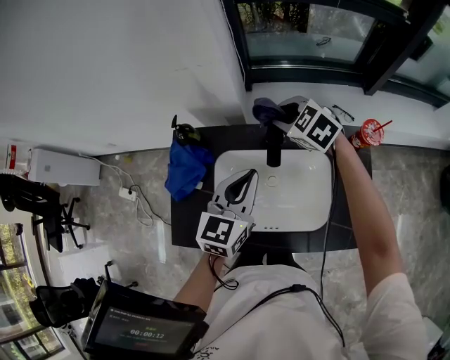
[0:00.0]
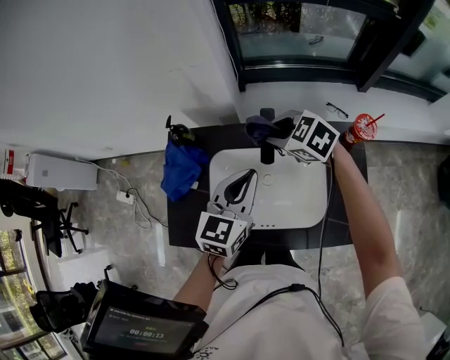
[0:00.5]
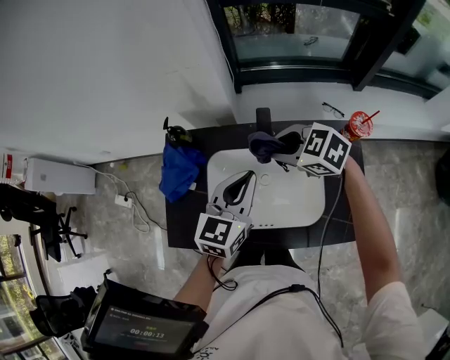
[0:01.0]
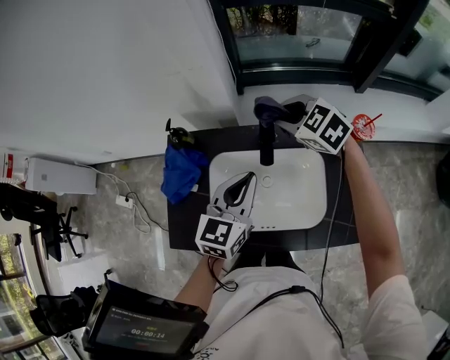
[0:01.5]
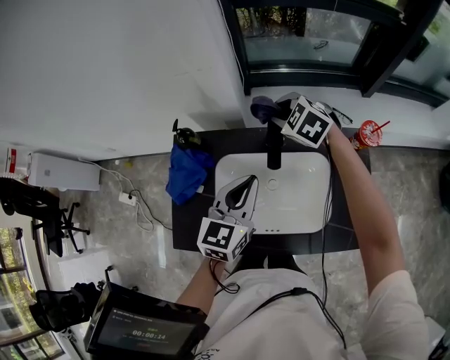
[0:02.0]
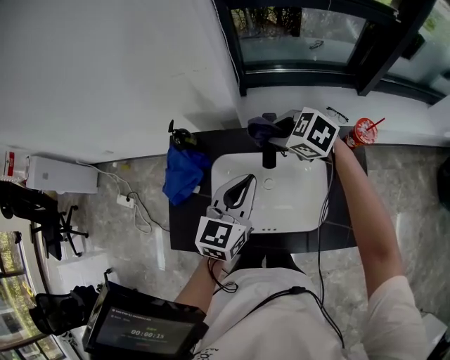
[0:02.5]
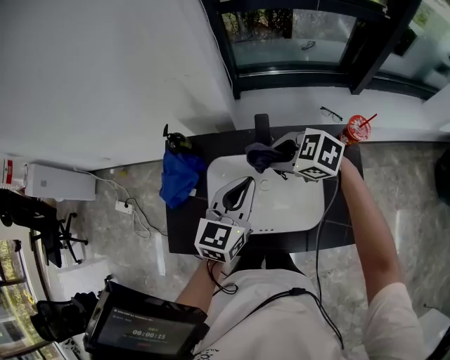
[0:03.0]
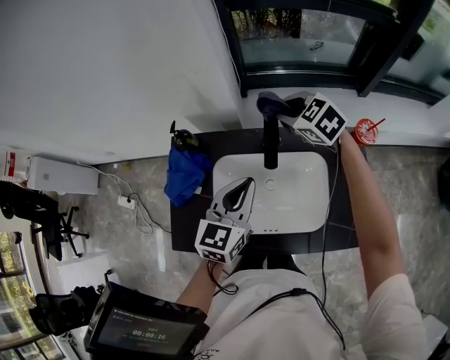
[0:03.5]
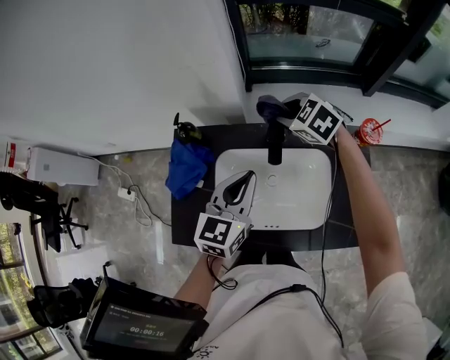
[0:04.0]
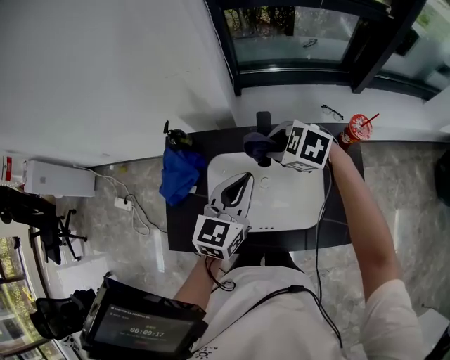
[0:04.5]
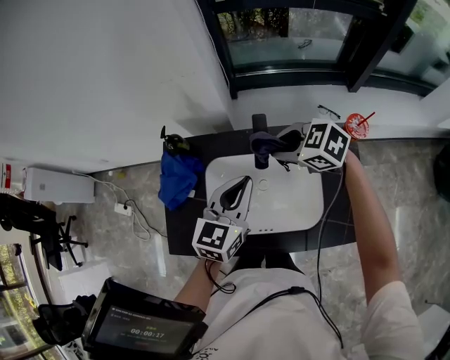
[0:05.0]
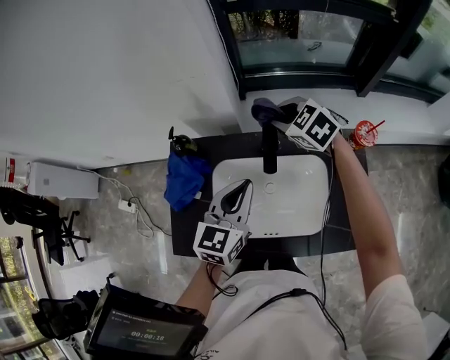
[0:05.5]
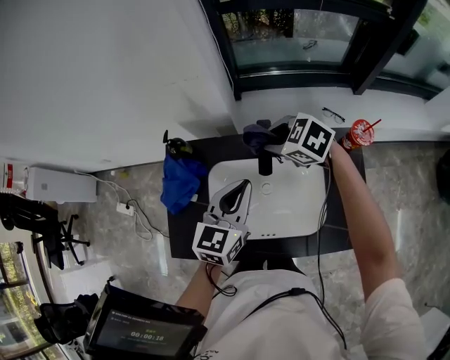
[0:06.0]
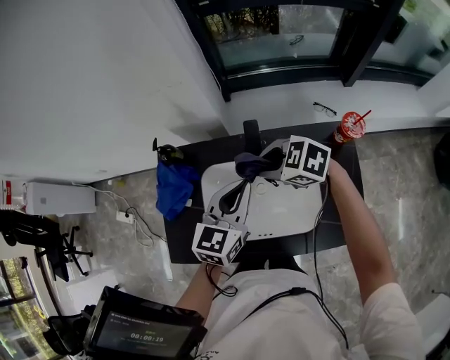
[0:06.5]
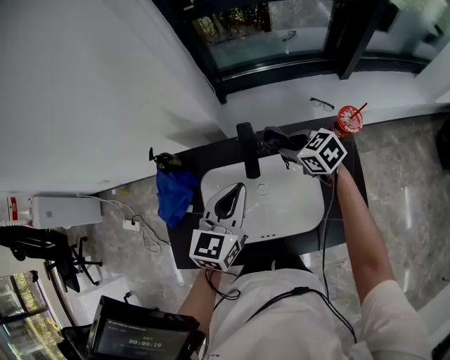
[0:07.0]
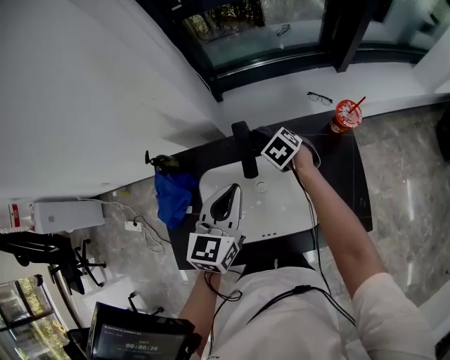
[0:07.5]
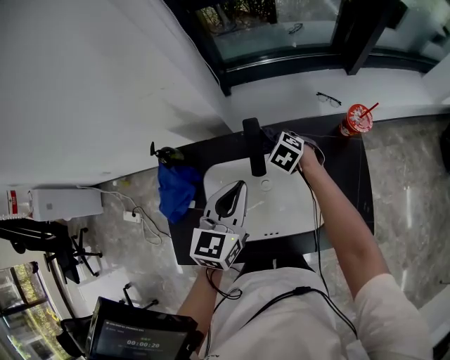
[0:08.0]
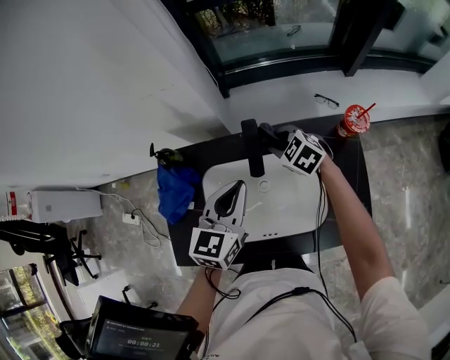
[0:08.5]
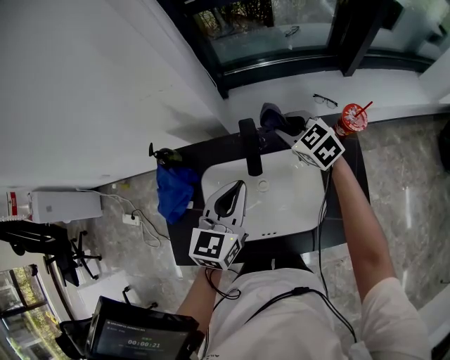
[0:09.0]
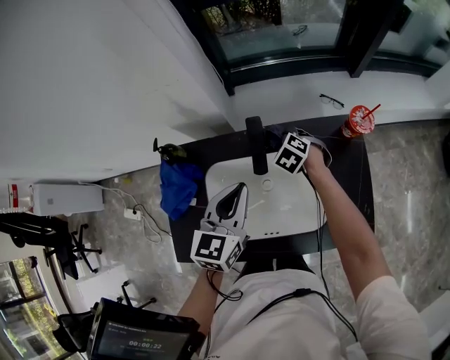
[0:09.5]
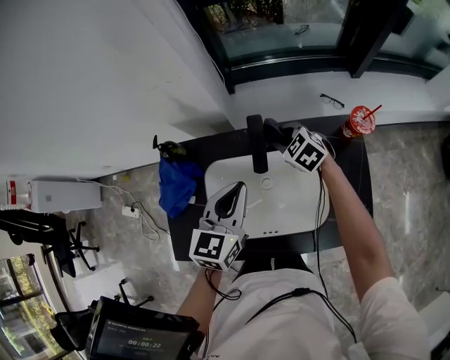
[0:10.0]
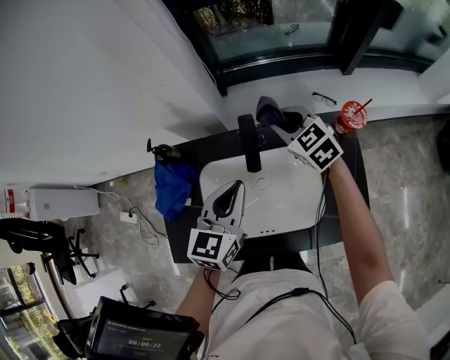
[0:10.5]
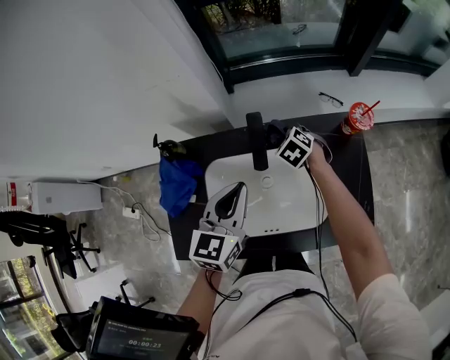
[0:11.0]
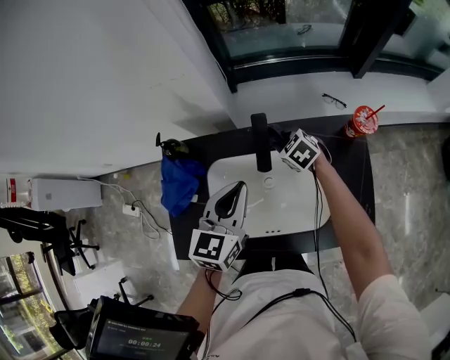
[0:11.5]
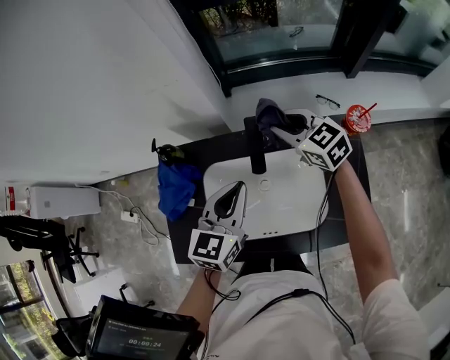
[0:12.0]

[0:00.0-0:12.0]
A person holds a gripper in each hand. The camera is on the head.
0.0 to 2.0 s: The right gripper goes backward and returns, some 10 cm each way.
2.0 to 4.0 s: The right gripper goes backward and returns, roughly 15 cm each way.
4.0 to 6.0 s: The right gripper swings forward and backward, roughly 10 cm each way, with 2 reversals.
6.0 to 8.0 s: The right gripper goes about 15 cm downward, and rotates roughly 20 degrees.
8.0 to 10.0 s: The right gripper swings up and down, roughly 15 cm each way, with 2 reversals.
10.0 to 12.0 s: The right gripper moves up and down over roughly 15 cm, changing direction 2 times, and changes its angle by approximately 20 degrees.

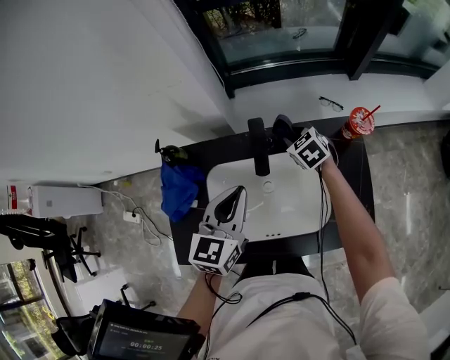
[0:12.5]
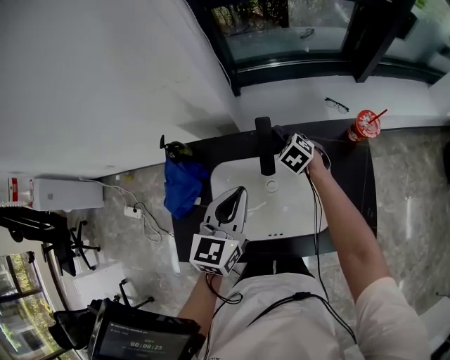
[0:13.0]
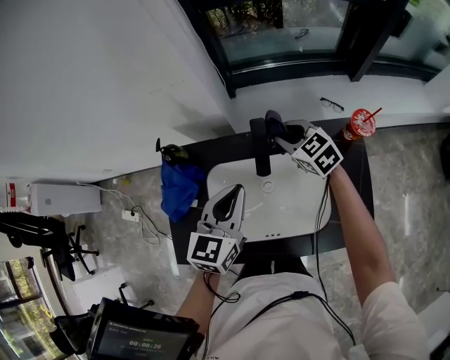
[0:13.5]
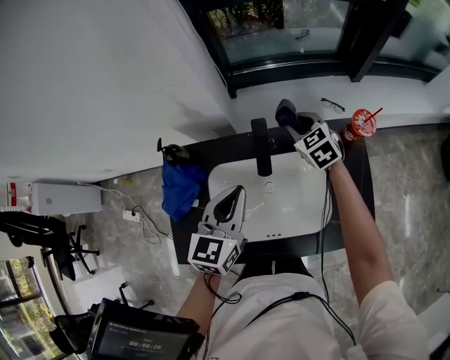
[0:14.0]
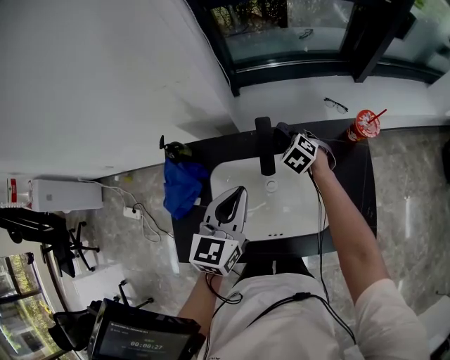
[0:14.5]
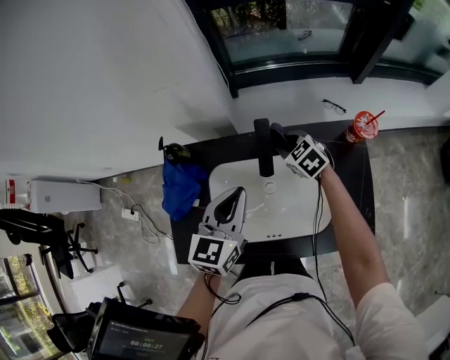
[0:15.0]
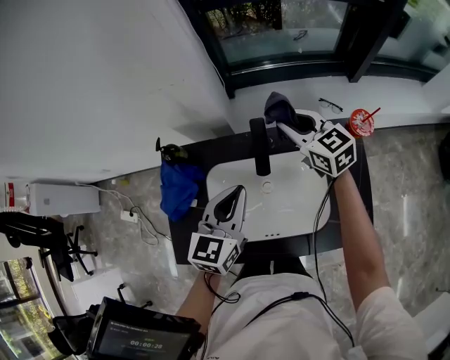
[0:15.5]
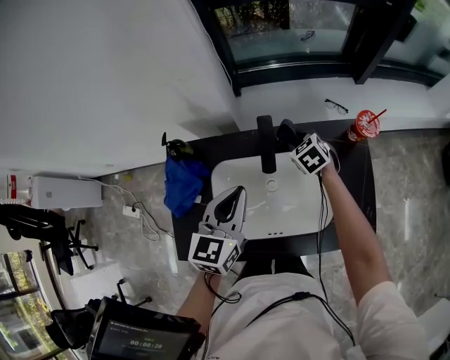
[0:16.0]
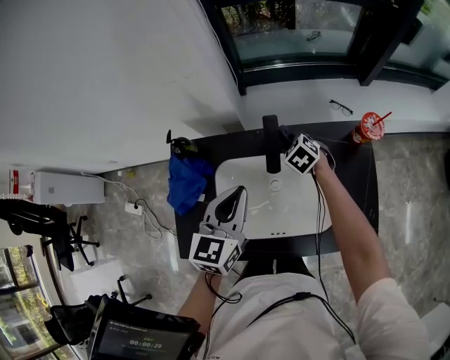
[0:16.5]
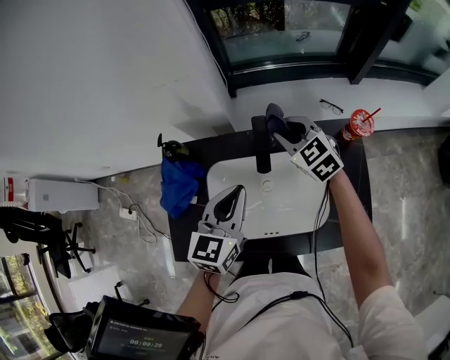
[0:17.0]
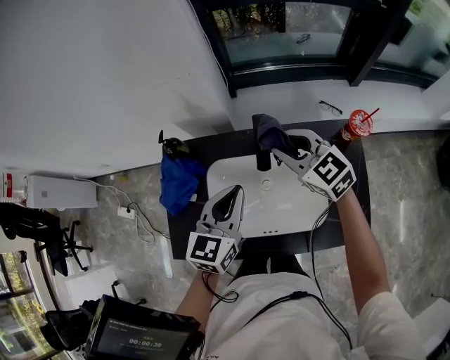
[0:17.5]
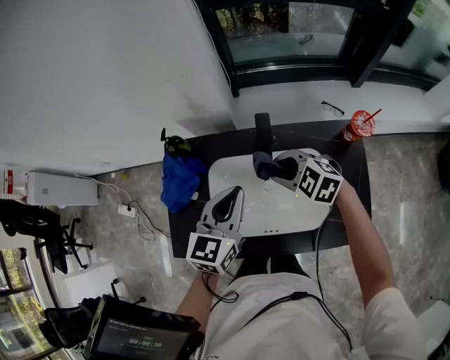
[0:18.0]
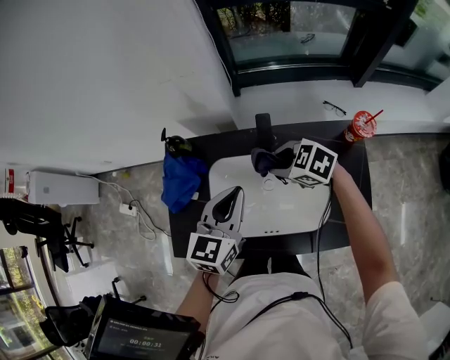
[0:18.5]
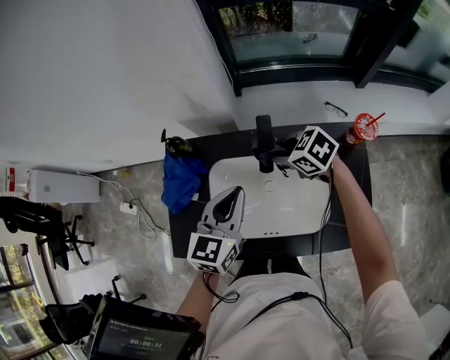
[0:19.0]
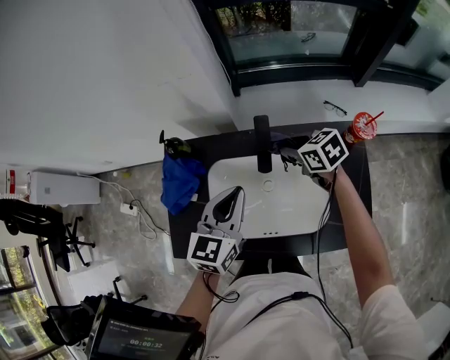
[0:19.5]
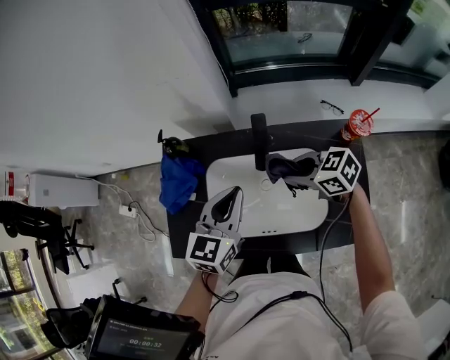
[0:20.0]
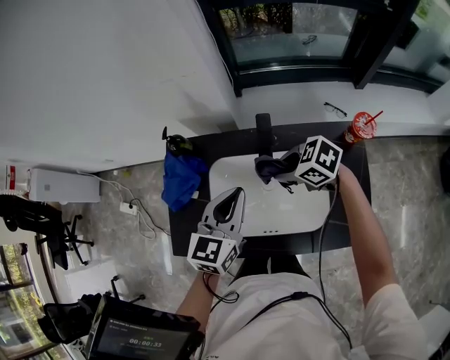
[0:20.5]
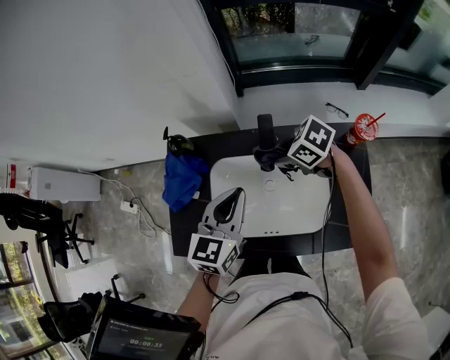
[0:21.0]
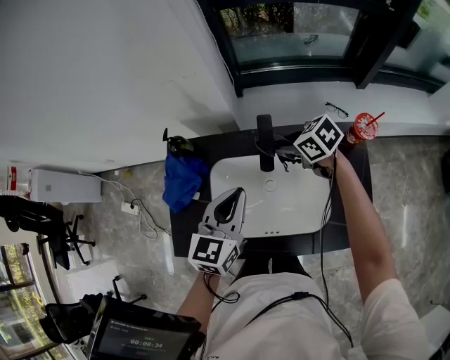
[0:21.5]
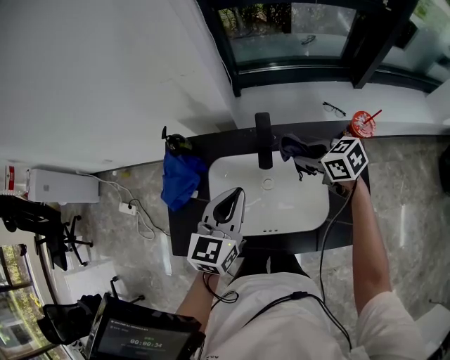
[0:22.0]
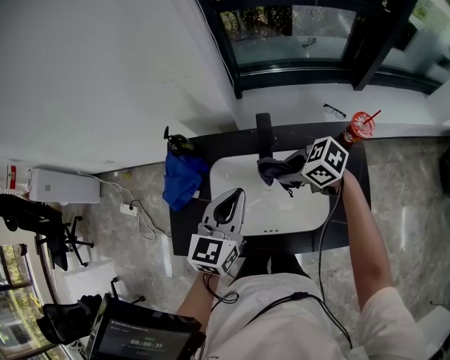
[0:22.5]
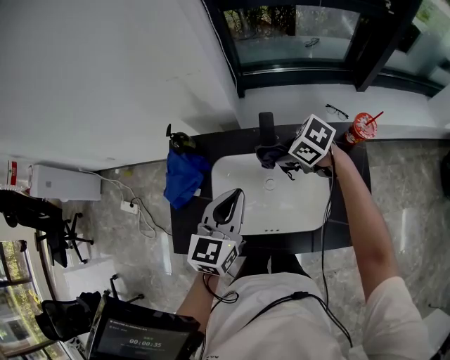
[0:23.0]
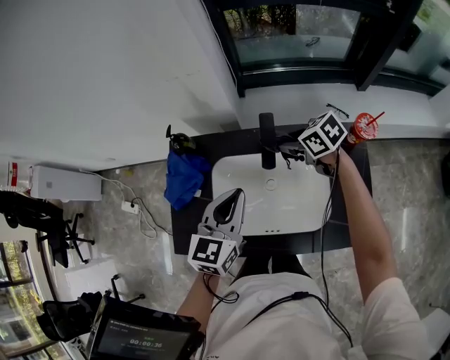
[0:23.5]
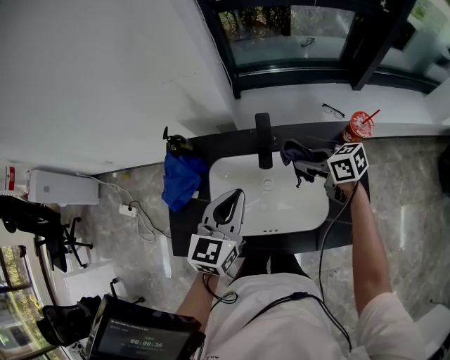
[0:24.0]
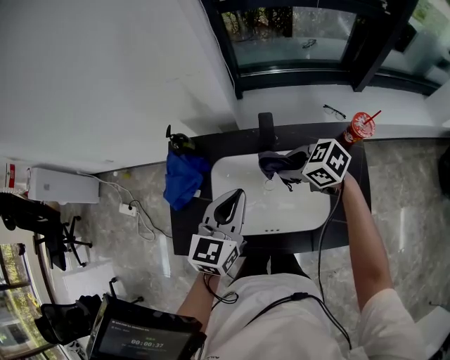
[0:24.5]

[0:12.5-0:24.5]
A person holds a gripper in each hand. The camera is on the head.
12.5 to 14.5 s: The right gripper swings up and down, approximately 10 cm each way, with 2 reversals.
14.5 to 16.5 s: The right gripper reaches roughly 20 cm upward, then returns.
16.5 to 18.5 s: The right gripper shifts some 15 cm upward, backward and to the left, and swivels approximately 30 degrees.
18.5 to 20.5 s: The right gripper travels backward and back again, about 5 cm each way.
20.5 to 22.5 s: The right gripper reaches about 10 cm to the right, then returns.
22.5 to 24.5 s: The right gripper travels forward and back again, approximately 10 cm each way.

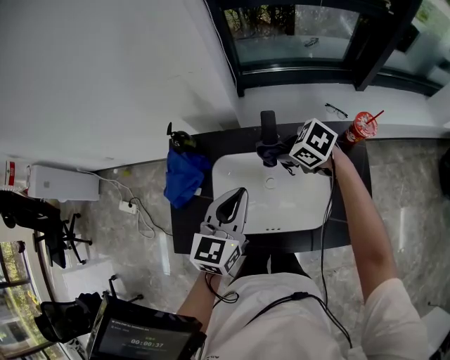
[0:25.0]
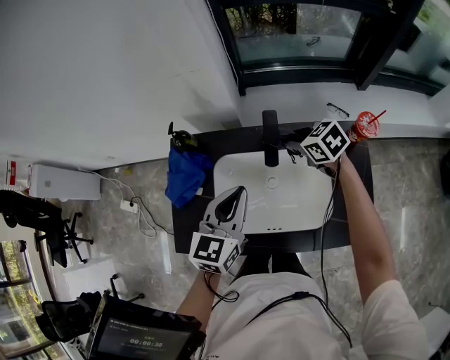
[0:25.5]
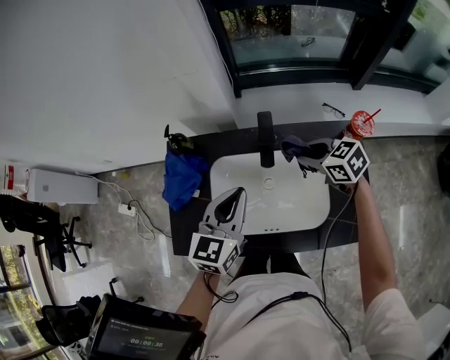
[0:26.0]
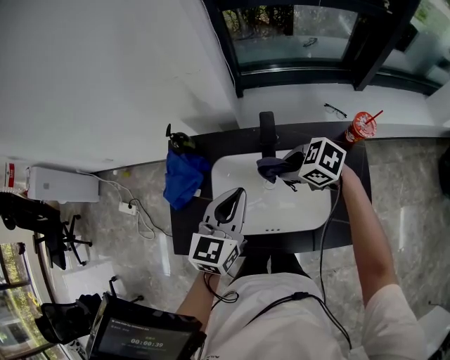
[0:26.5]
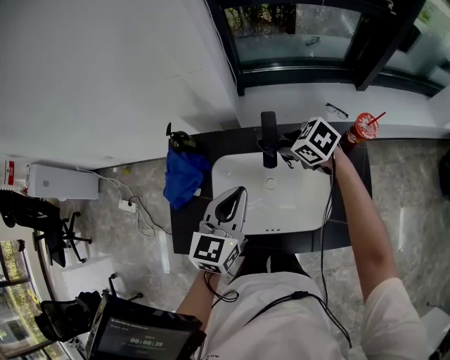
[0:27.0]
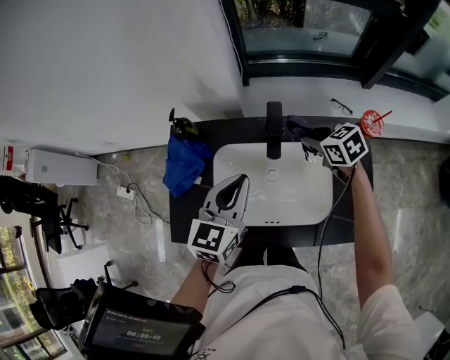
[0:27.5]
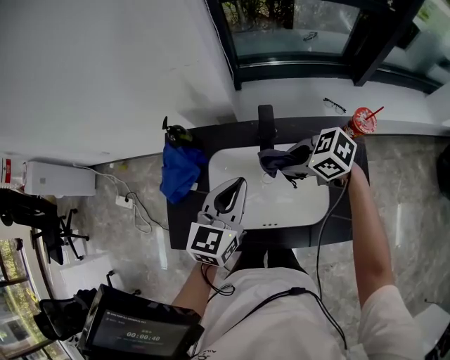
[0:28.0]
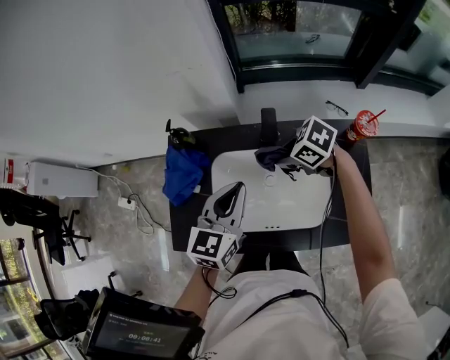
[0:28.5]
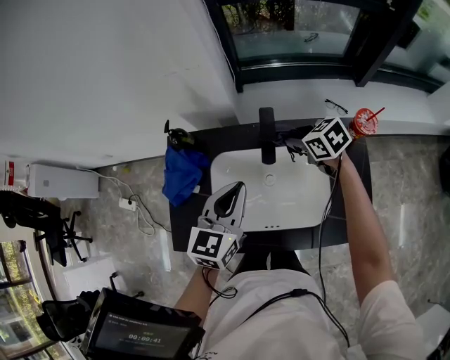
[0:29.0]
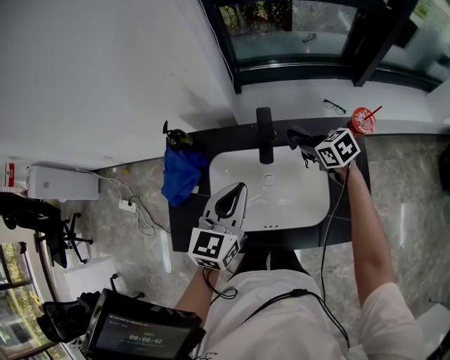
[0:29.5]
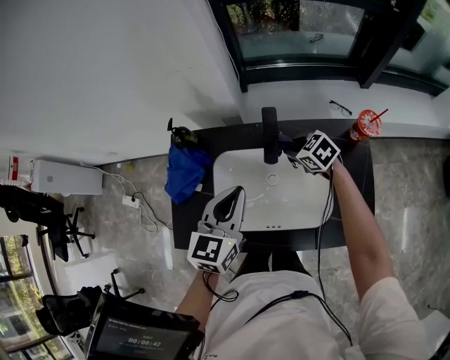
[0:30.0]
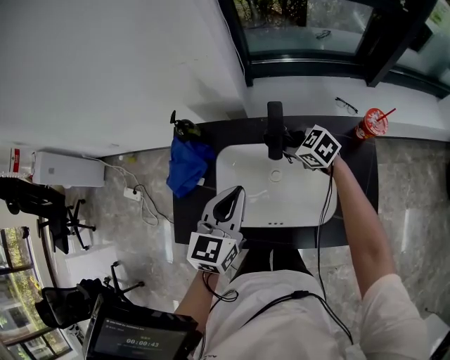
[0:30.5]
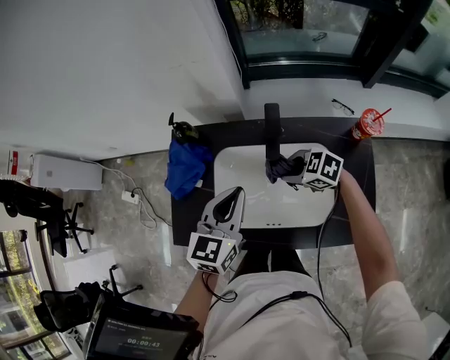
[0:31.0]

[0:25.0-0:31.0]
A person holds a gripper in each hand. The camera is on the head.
25.0 to 27.0 s: The right gripper travels to the right and back again, about 5 cm each way.
27.0 to 29.0 s: The right gripper goes left and right, about 10 cm each way, reversing 2 times.
29.0 to 31.0 s: The right gripper moves backward, to the left and downward, roughly 15 cm, and rotates approximately 30 degrees.
